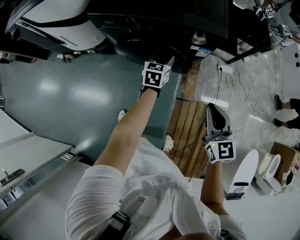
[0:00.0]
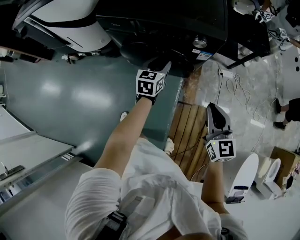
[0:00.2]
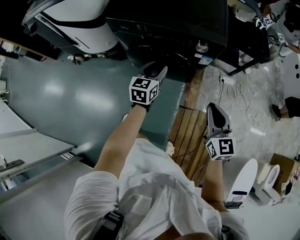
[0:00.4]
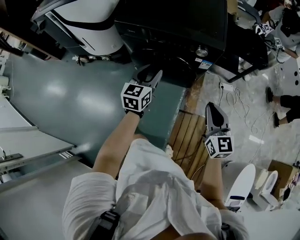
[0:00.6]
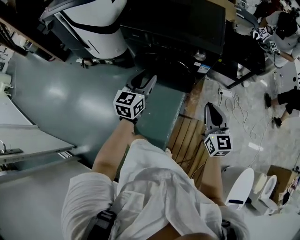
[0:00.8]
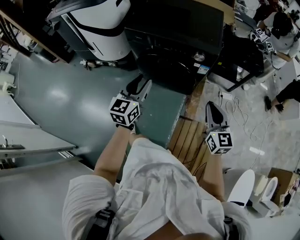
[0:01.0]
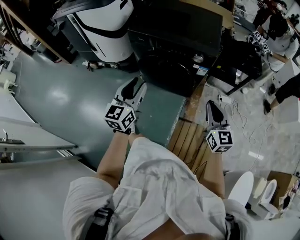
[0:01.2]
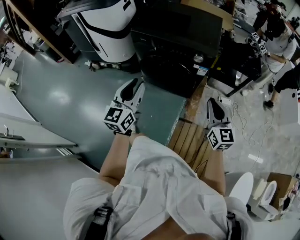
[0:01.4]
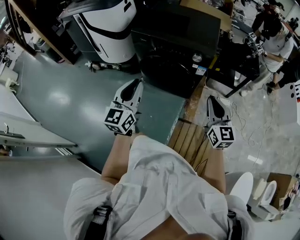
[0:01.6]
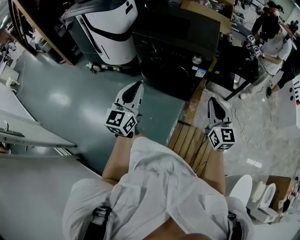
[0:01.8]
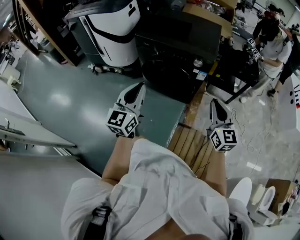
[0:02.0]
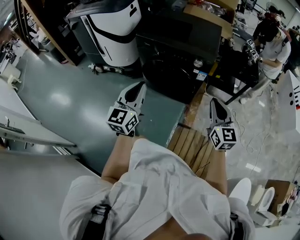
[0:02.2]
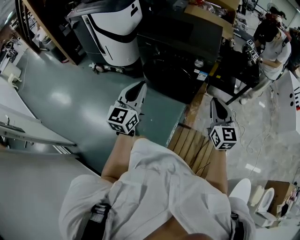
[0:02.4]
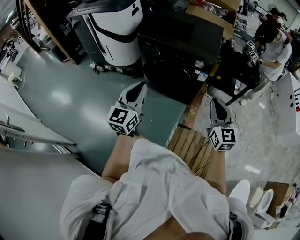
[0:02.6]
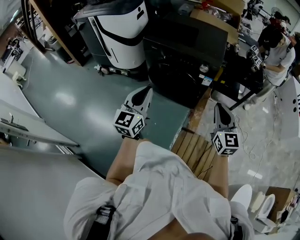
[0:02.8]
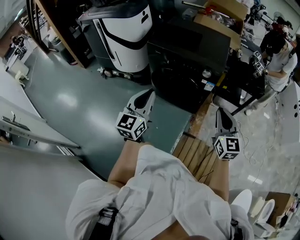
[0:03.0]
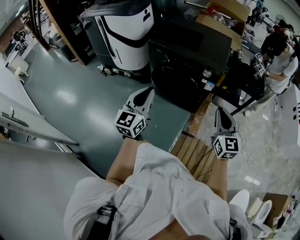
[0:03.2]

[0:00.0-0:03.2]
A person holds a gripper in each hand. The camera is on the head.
0:00.0 to 0:01.6: The left gripper travels upward, backward and to the left by about 50 cm, tilts its fingers about 30 degrees upward, and closes up. The right gripper moves upward and backward, approximately 15 cm.
0:01.6 to 0:03.2: The grippers move only a little.

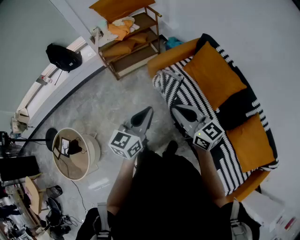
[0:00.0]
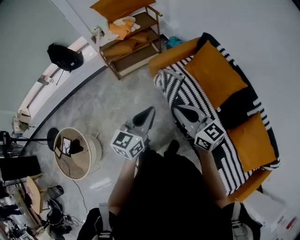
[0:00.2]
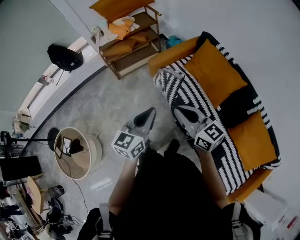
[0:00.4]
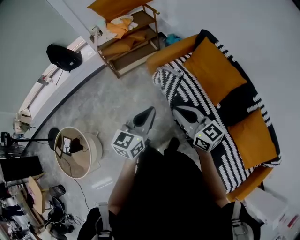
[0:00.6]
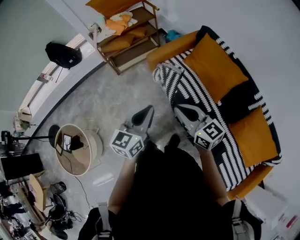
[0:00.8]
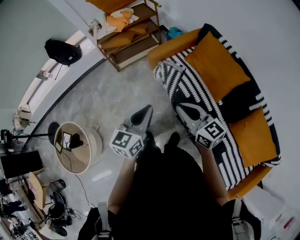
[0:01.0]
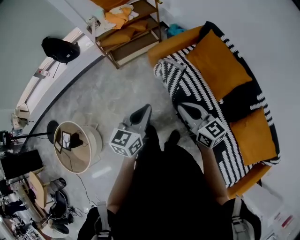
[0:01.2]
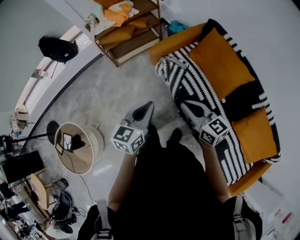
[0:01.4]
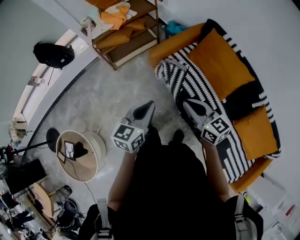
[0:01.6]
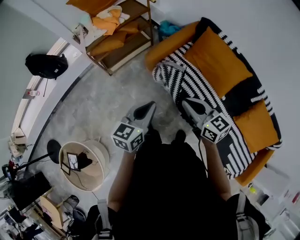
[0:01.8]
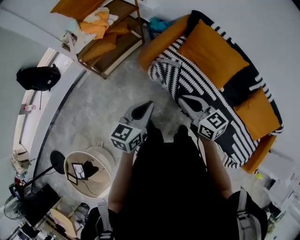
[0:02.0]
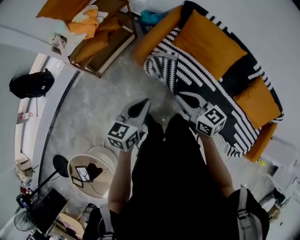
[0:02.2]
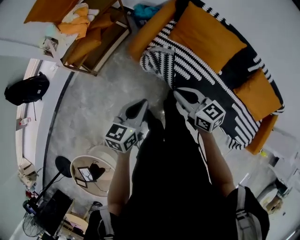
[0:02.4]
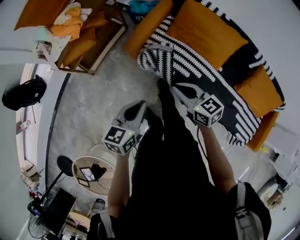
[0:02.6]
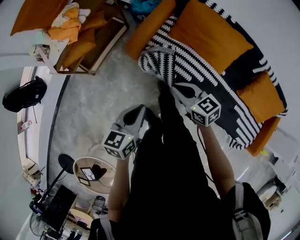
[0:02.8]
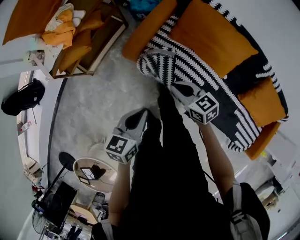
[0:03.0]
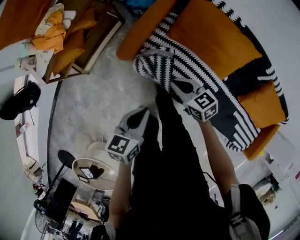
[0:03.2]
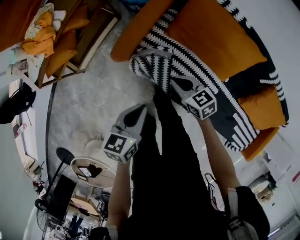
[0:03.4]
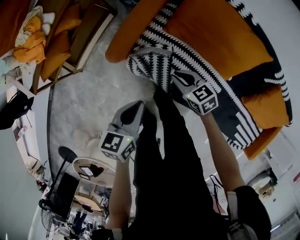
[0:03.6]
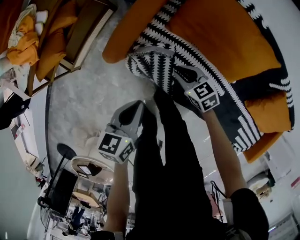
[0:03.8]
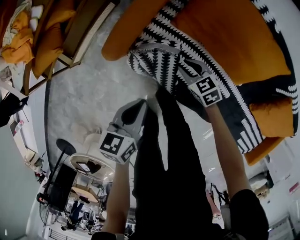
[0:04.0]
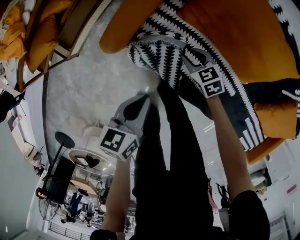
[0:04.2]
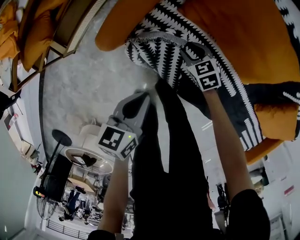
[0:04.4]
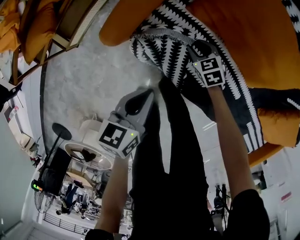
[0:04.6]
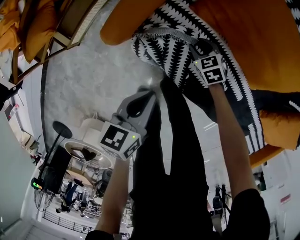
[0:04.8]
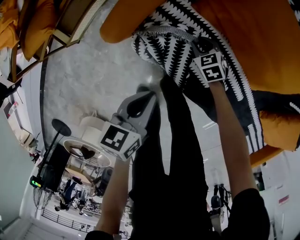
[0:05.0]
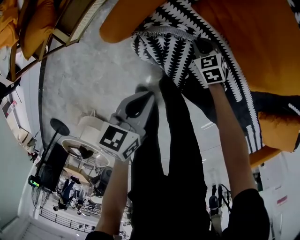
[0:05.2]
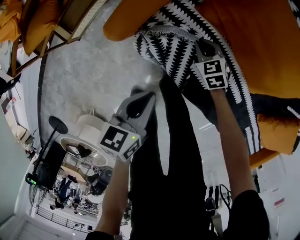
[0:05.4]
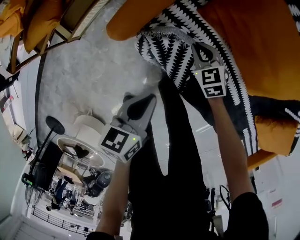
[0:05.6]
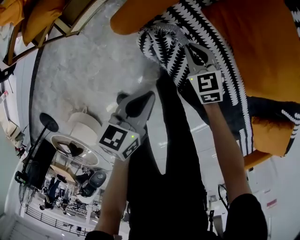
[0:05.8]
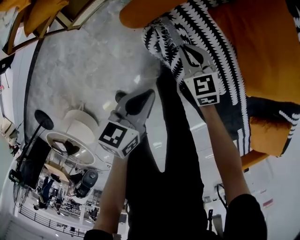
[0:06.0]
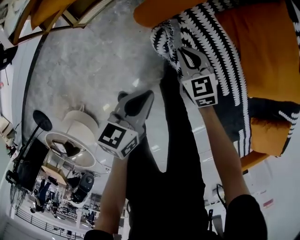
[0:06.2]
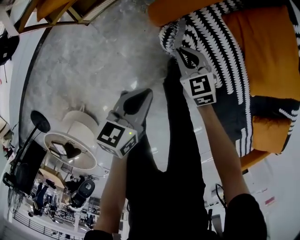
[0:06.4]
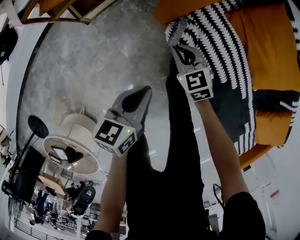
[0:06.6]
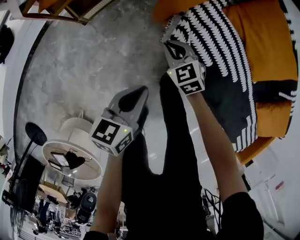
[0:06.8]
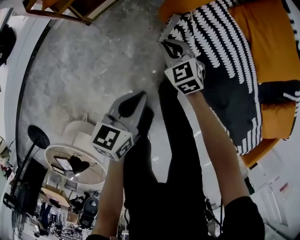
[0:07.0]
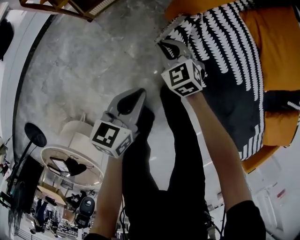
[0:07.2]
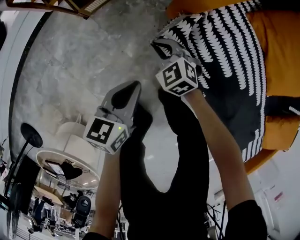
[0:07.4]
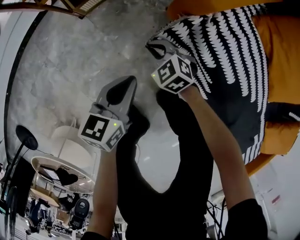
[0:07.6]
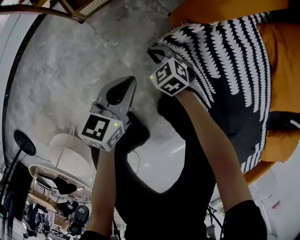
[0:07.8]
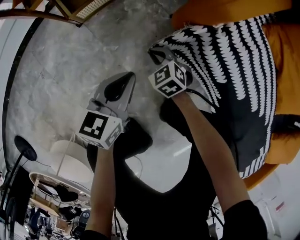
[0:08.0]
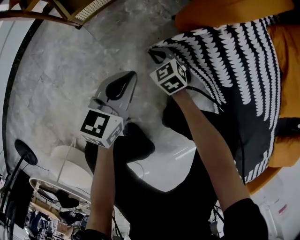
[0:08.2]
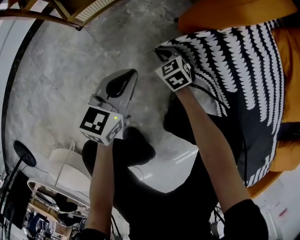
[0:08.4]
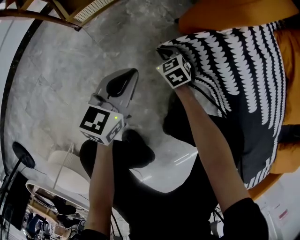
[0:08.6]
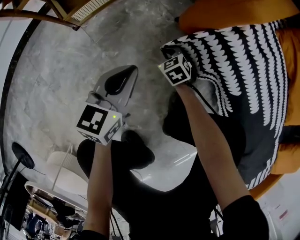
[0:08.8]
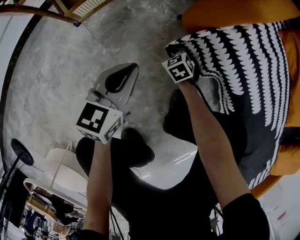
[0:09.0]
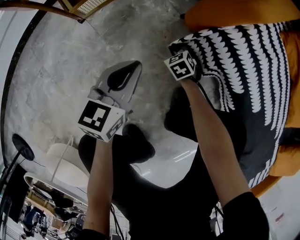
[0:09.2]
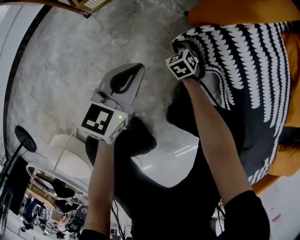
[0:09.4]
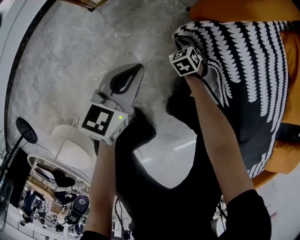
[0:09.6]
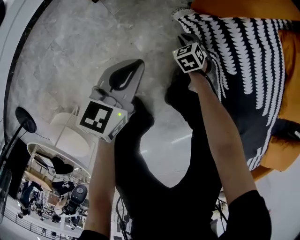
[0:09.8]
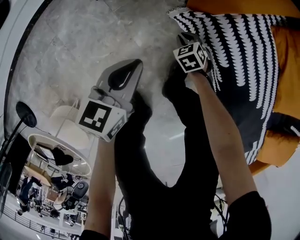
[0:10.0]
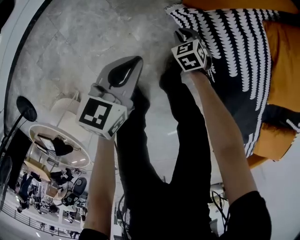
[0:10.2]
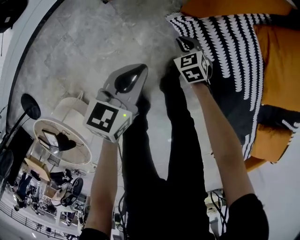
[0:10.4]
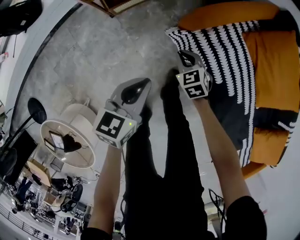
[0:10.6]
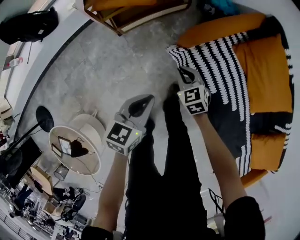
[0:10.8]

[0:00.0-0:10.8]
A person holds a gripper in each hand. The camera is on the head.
0:00.0 to 0:01.6: The left gripper shifts about 15 cm forward, downward and to the left. Meanwhile the right gripper moves forward and downward, about 10 cm.
0:01.6 to 0:03.0: Both grippers travel together forward and downward, some 25 cm. The left gripper changes its angle by approximately 30 degrees.
0:03.0 to 0:04.6: Both grippers travel together downward and forward, roughly 35 cm. The right gripper rotates some 30 degrees, and opens.
0:04.6 to 0:06.2: The right gripper goes roughly 20 cm to the left and upward, turns by approximately 20 degrees, and closes. Meanwhile the left gripper heads to the left and backward, covering some 15 cm.
0:06.2 to 0:07.8: The two grippers go roughly 35 cm downward and to the left. The right gripper swivels approximately 20 degrees.
0:07.8 to 0:09.2: The left gripper goes about 10 cm downward and forward, while the right gripper goes roughly 20 cm downward.
0:09.2 to 0:10.8: Both grippers travel together upward, some 50 cm.

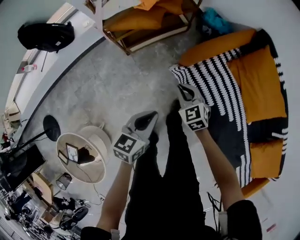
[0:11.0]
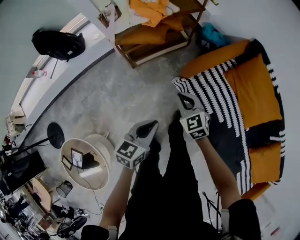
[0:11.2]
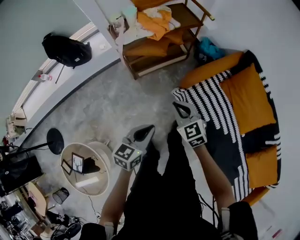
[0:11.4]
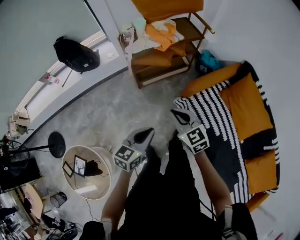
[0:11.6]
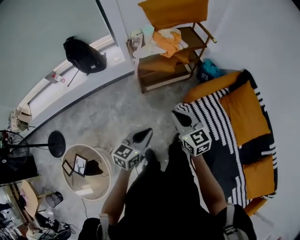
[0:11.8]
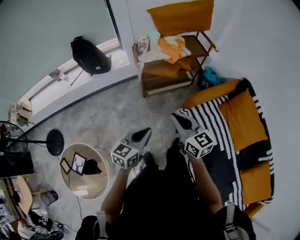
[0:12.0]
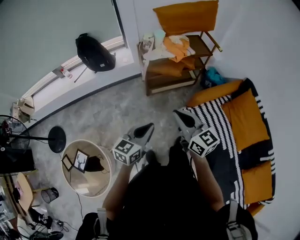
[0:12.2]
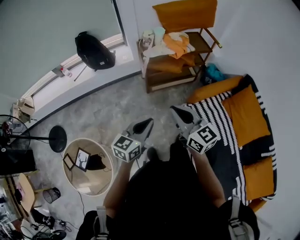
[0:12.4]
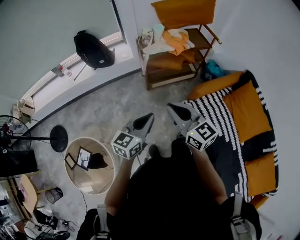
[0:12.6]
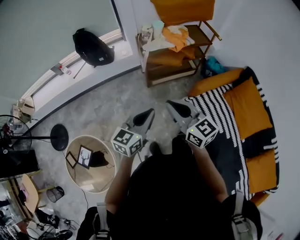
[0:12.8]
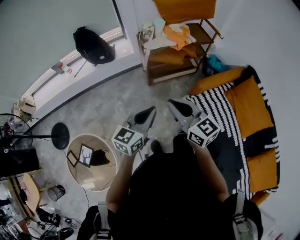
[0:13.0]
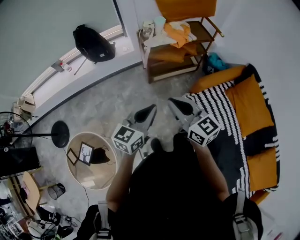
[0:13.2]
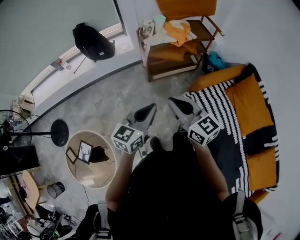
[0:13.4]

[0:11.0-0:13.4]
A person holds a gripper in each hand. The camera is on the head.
0:11.0 to 0:12.2: The left gripper heads upward, to the left and backward, covering approximately 30 cm; the right gripper moves upward, to the left and backward, roughly 40 cm, and tips its fingers upward by about 40 degrees.
0:12.2 to 0:13.4: The right gripper shifts by about 5 cm.

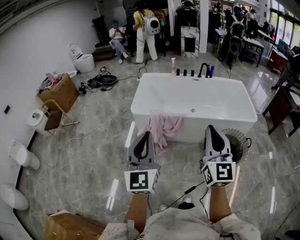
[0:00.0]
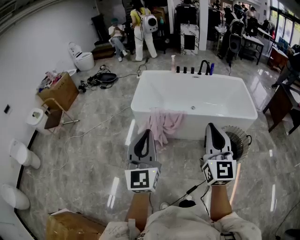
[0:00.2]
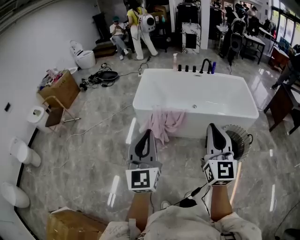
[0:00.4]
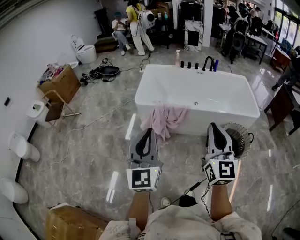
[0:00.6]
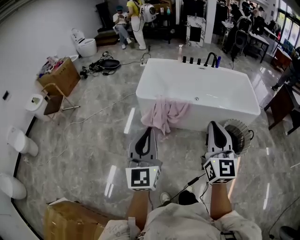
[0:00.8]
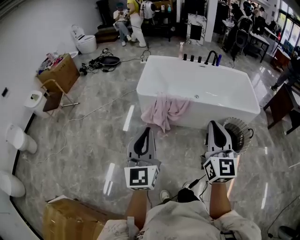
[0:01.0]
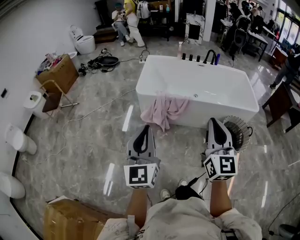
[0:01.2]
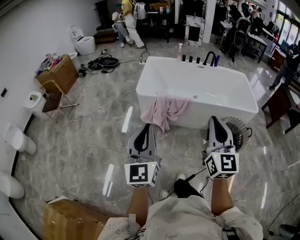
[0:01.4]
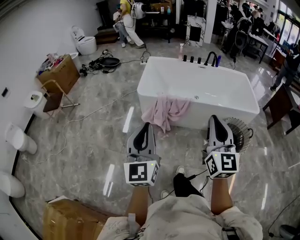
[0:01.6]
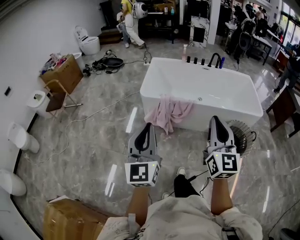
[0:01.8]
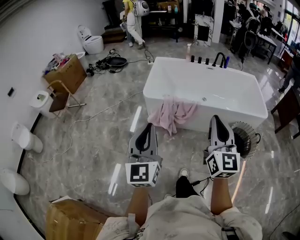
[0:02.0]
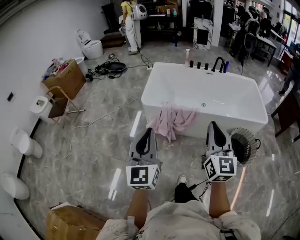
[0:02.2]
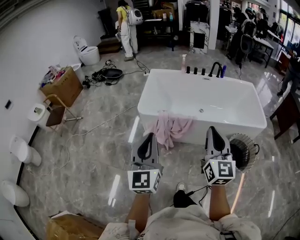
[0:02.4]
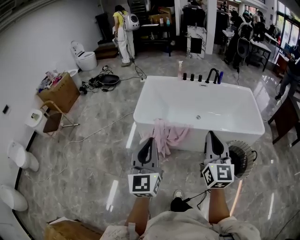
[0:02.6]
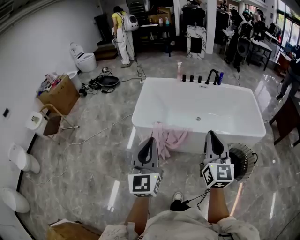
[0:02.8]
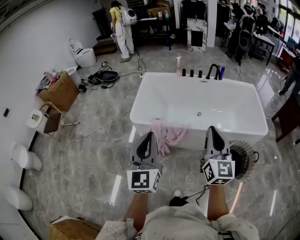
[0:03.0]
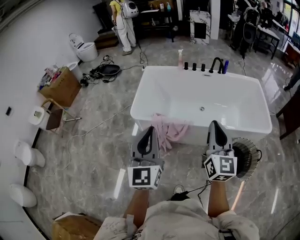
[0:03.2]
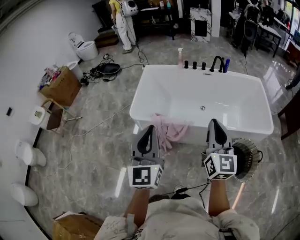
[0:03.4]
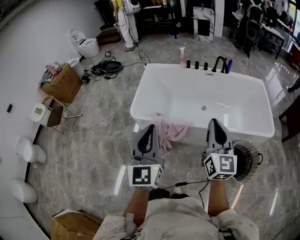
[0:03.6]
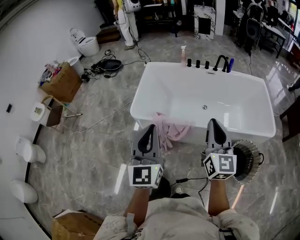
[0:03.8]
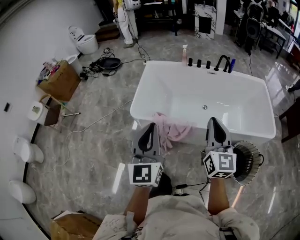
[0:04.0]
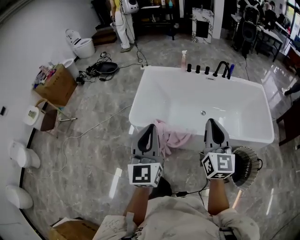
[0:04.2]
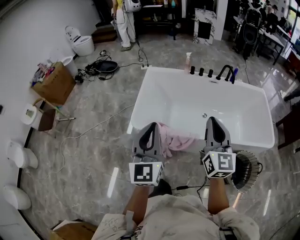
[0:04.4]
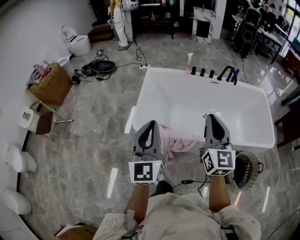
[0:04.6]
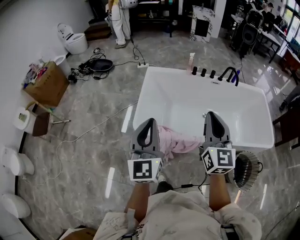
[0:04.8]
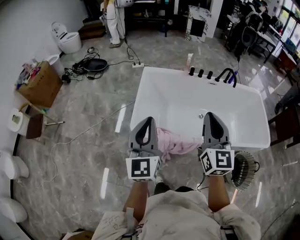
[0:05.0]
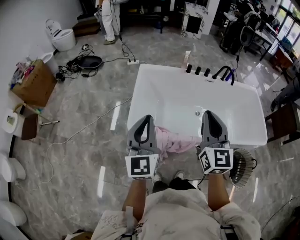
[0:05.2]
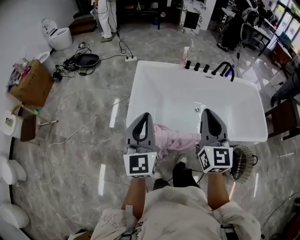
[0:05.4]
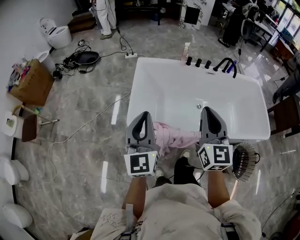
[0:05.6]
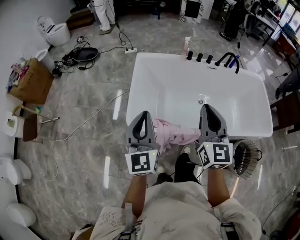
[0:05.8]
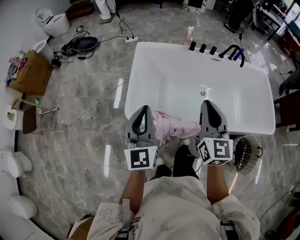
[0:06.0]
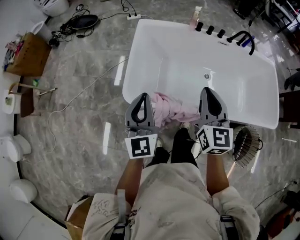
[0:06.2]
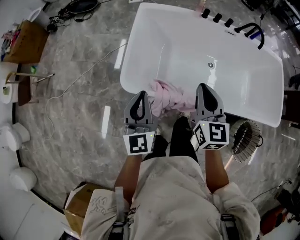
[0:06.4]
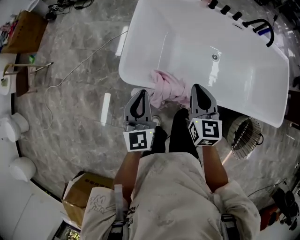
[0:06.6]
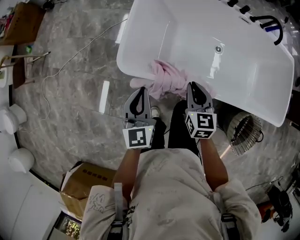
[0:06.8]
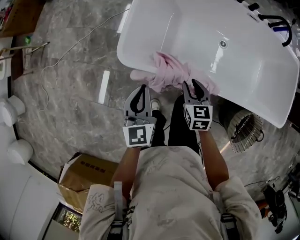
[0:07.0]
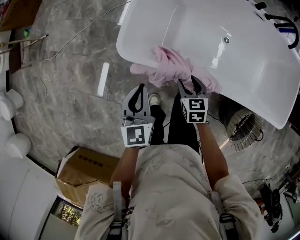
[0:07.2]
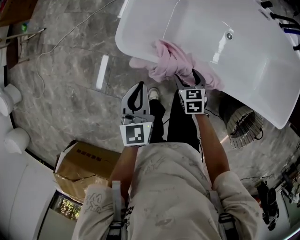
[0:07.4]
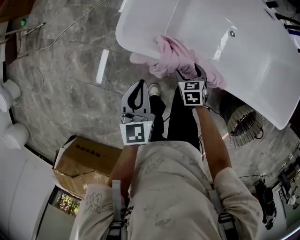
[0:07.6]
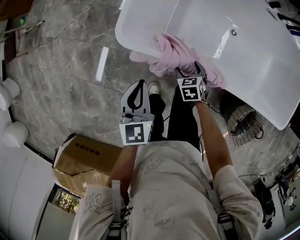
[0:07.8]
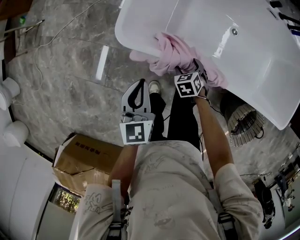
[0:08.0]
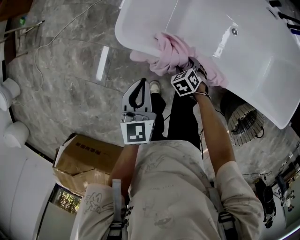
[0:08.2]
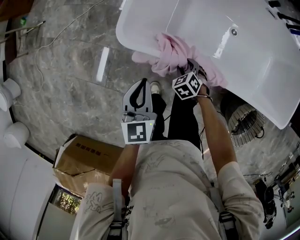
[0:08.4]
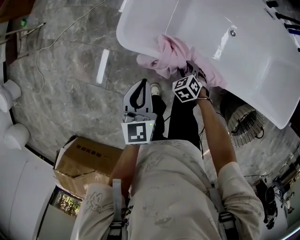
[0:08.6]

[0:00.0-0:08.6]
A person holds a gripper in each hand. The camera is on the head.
0:00.0 to 0:01.4: The right gripper shifts some 10 cm to the left. Meanwhile the left gripper heads to the left and backward, covering roughly 10 cm.
0:01.4 to 0:02.8: The left gripper goes about 25 cm forward and to the right. Meanwhile the right gripper goes roughly 25 cm forward.
0:02.8 to 0:04.4: Both grippers travel together forward, some 25 cm.
0:04.4 to 0:05.8: The right gripper is displaced forward and to the left by some 20 cm. The left gripper is displaced forward, to the left and downward by some 25 cm.
0:05.8 to 0:07.2: The left gripper goes roughly 30 cm downward, and changes its angle by some 30 degrees. Meanwhile the right gripper moves downward, some 40 cm, points its fingers some 50 degrees further downward, and opens.
0:07.2 to 0:08.6: The right gripper shifts about 10 cm downward, rotates some 40 degrees, and opens and closes again.
